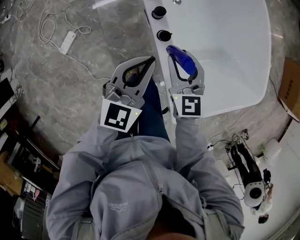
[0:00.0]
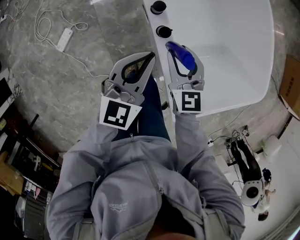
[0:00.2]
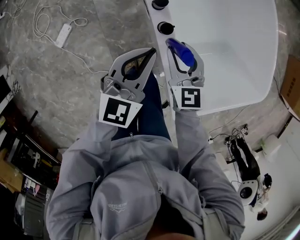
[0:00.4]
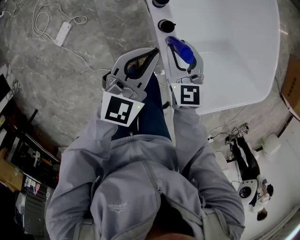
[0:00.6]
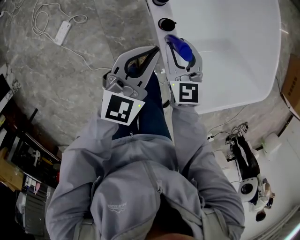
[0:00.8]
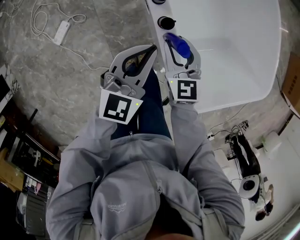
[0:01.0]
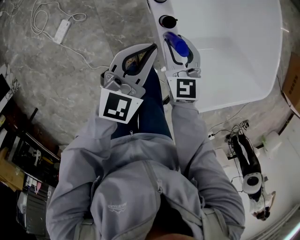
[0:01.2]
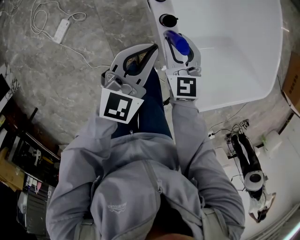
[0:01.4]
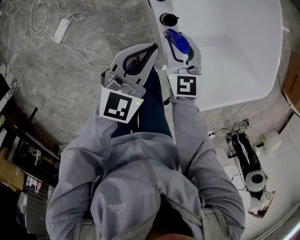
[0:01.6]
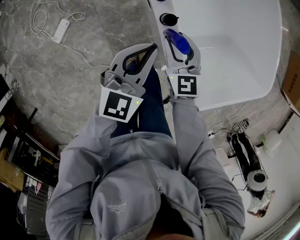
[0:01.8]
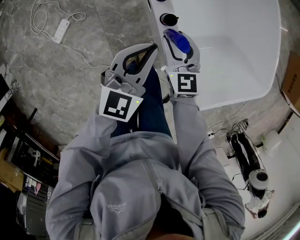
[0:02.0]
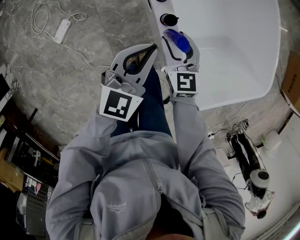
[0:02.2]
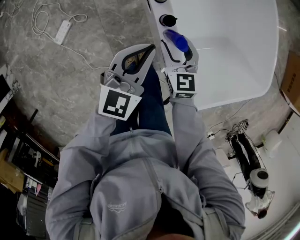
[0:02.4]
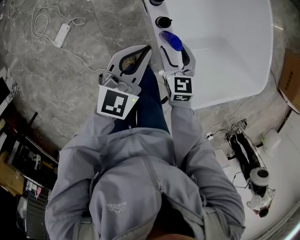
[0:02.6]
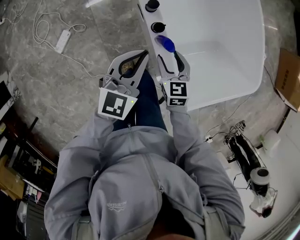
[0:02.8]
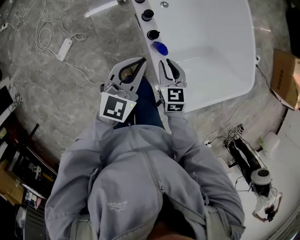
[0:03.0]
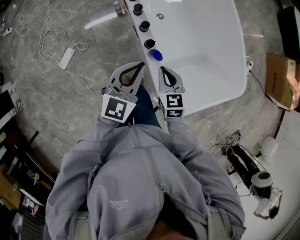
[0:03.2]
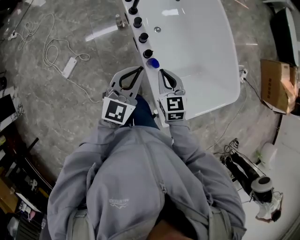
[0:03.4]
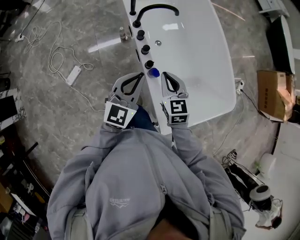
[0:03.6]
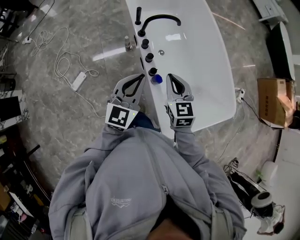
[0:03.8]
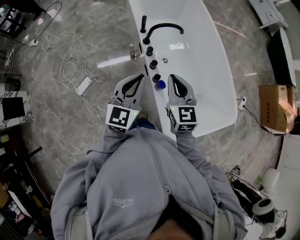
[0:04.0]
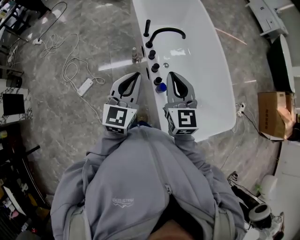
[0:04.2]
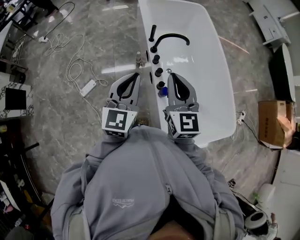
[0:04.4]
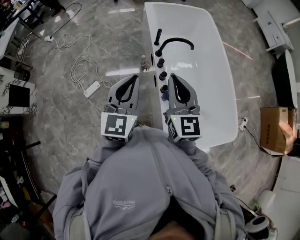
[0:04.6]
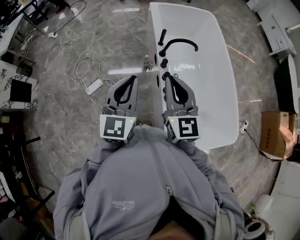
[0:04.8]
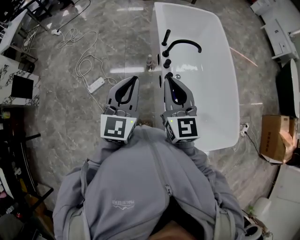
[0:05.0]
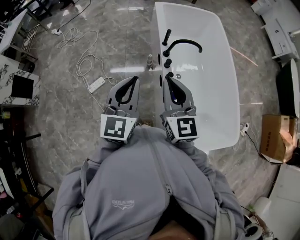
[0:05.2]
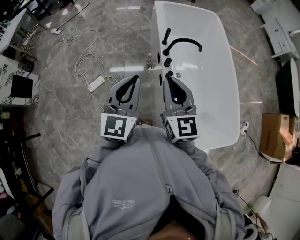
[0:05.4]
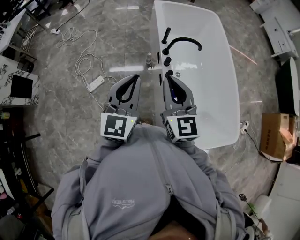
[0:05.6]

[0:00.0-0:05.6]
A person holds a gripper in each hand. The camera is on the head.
0:00.0 to 0:01.4: The two grippers go some 5 cm downward.
0:01.4 to 0:02.8: The right gripper moves about 5 cm.
0:02.8 to 0:04.2: The right gripper moves upward, about 40 cm, angles its fingers upward, by roughly 30 degrees, and closes its fingers; the left gripper heads upward, covering about 25 cm, and changes its angle by some 20 degrees.
0:04.2 to 0:05.6: The right gripper travels to the left by some 10 cm. Meanwhile the left gripper heads to the left and upward, covering roughly 10 cm.

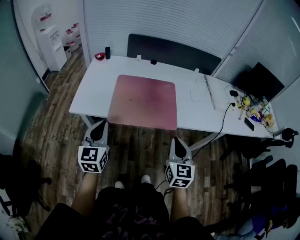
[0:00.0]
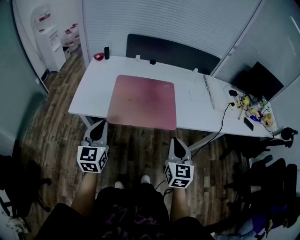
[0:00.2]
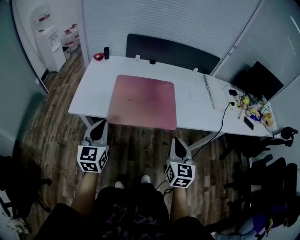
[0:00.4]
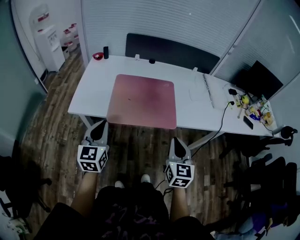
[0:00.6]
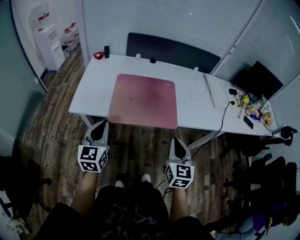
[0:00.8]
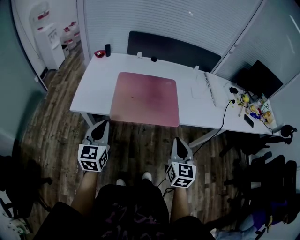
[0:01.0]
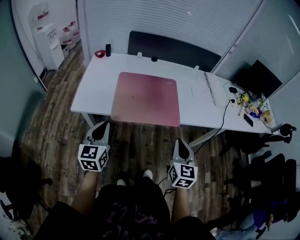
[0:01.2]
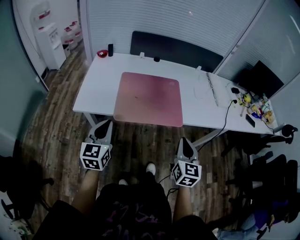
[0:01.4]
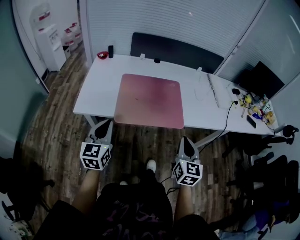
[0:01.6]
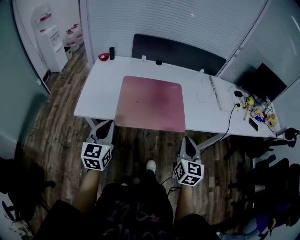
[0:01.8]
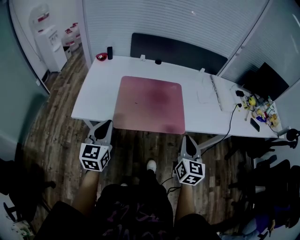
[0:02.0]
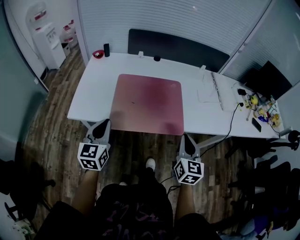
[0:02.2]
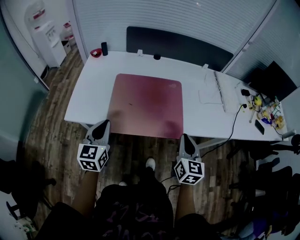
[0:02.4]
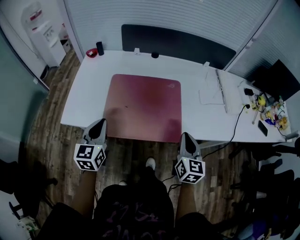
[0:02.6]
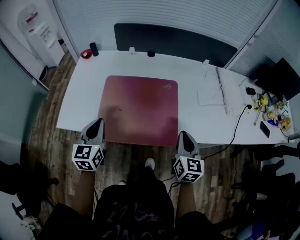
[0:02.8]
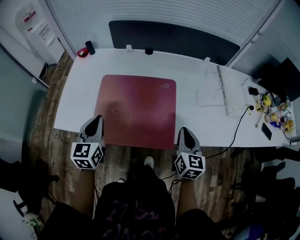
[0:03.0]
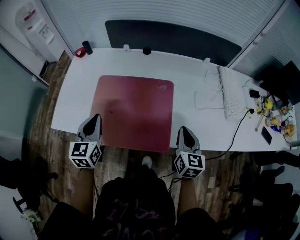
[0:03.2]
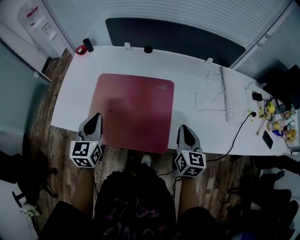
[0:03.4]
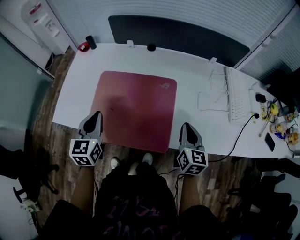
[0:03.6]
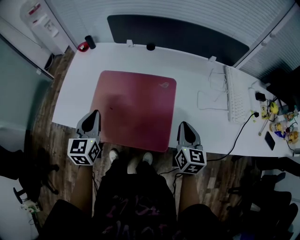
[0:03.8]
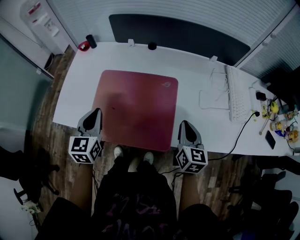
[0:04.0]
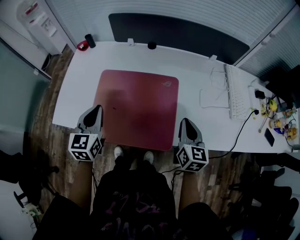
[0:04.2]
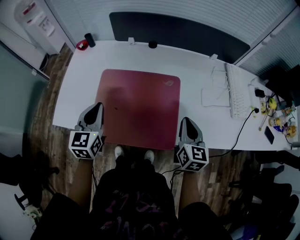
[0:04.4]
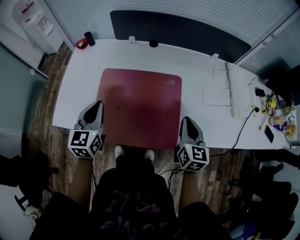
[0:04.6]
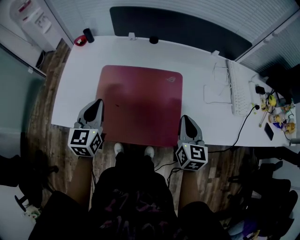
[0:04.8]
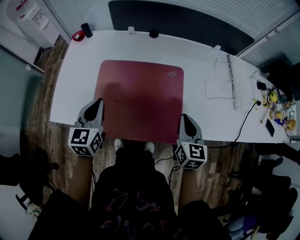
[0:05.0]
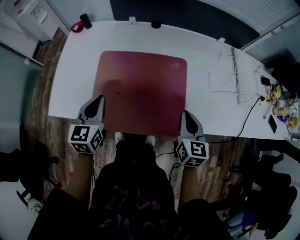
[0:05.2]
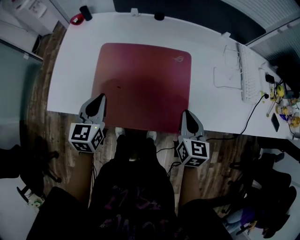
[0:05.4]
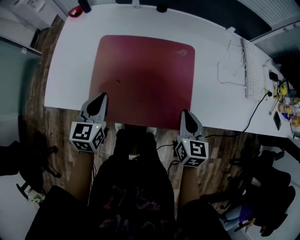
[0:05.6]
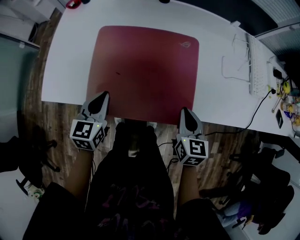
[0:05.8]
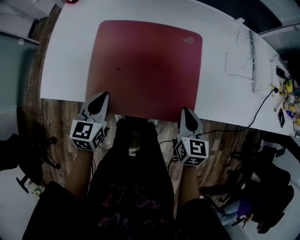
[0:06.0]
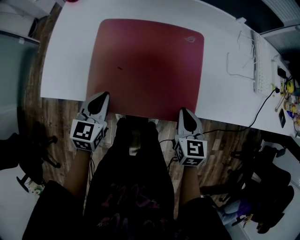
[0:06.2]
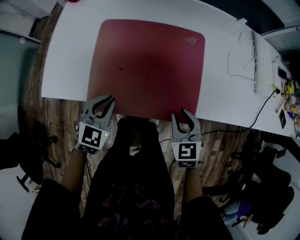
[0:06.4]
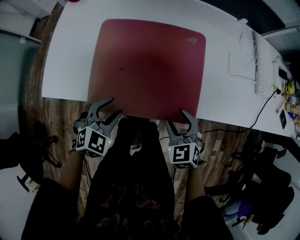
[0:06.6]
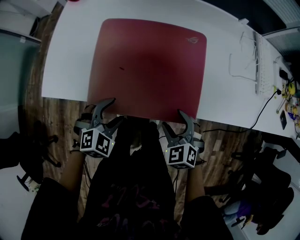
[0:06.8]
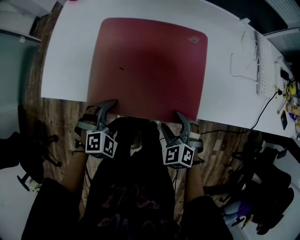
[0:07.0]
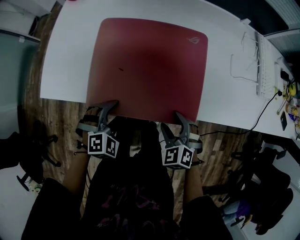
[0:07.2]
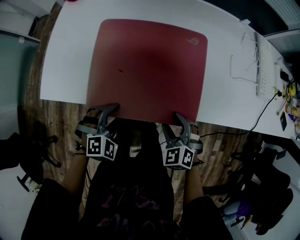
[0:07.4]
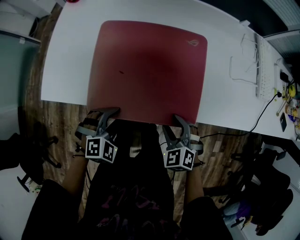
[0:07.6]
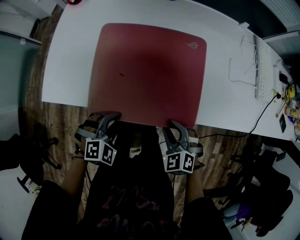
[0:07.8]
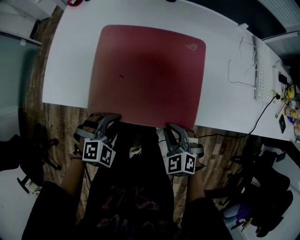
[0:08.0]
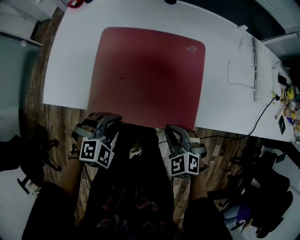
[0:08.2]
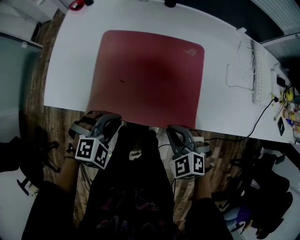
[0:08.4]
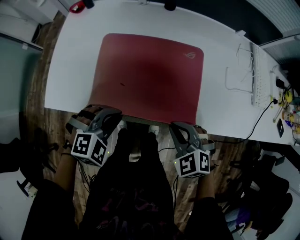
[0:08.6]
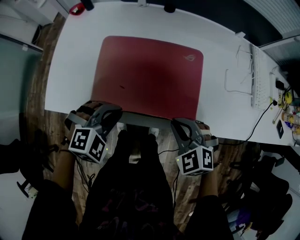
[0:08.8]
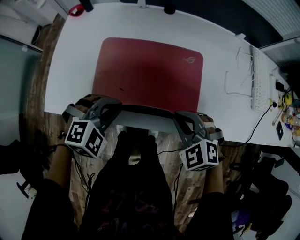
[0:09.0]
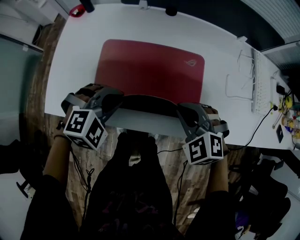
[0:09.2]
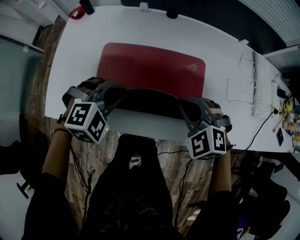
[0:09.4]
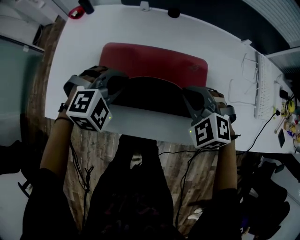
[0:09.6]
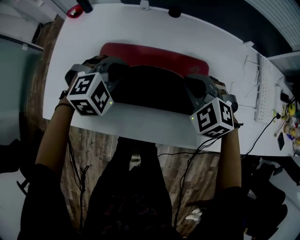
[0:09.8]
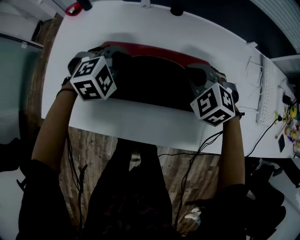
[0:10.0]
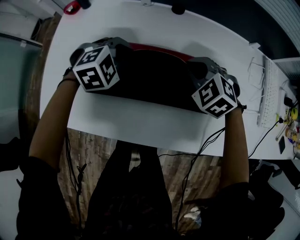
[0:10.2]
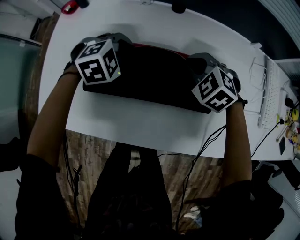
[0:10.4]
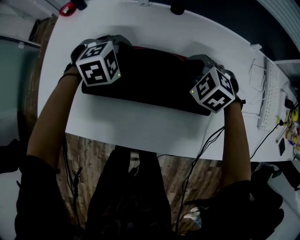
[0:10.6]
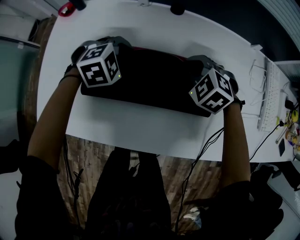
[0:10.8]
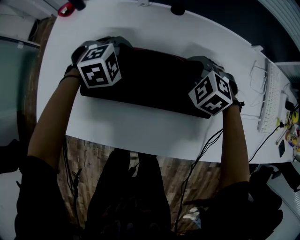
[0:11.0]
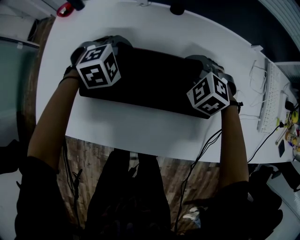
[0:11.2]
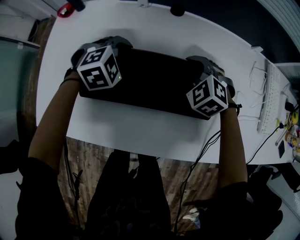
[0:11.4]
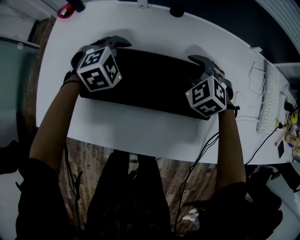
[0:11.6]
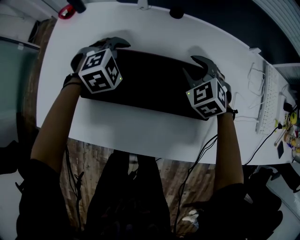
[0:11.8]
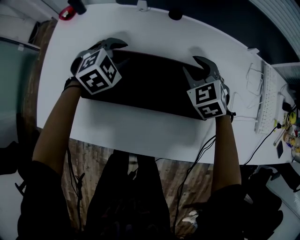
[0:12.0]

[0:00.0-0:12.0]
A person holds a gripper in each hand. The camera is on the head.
0:00.0 to 0:01.6: The grippers stay close to where they were, moving slightly.
0:01.6 to 0:03.0: Both grippers travel together forward, some 20 cm.
0:03.0 to 0:04.4: The two grippers go some 5 cm forward.
0:04.4 to 0:06.0: The left gripper shifts some 15 cm downward and backward. The right gripper moves downward, backward and to the left, about 15 cm.
0:06.0 to 0:07.6: The left gripper shifts approximately 10 cm backward, downward and to the right, rolls clockwise, seen from behind, by roughly 60 degrees, and opens its fingers; the right gripper is displaced to the left by approximately 5 cm, rotates around the line of its fingers by about 50 degrees, counterclockwise from behind, and opens.
0:07.6 to 0:09.0: The left gripper travels forward and upward by roughly 15 cm, and closes. Meanwhile the right gripper shifts roughly 15 cm upward and forward, and closes its fingers.
0:09.0 to 0:10.4: Both grippers move forward, roughly 25 cm.
0:10.4 to 0:12.0: The right gripper swivels about 20 degrees, and opens its fingers; the left gripper opens its fingers.

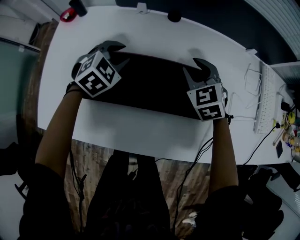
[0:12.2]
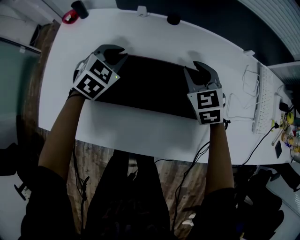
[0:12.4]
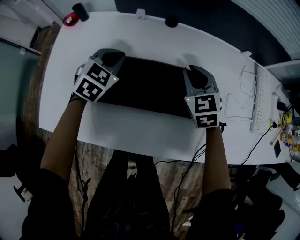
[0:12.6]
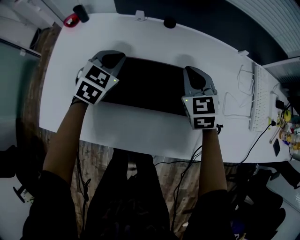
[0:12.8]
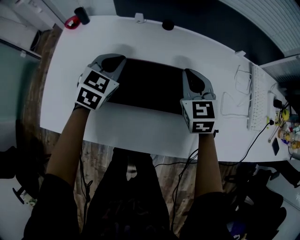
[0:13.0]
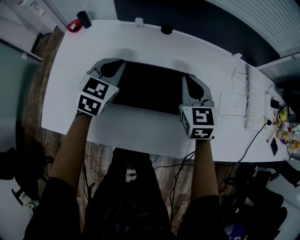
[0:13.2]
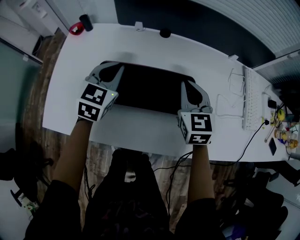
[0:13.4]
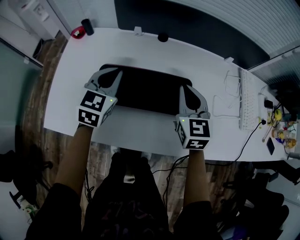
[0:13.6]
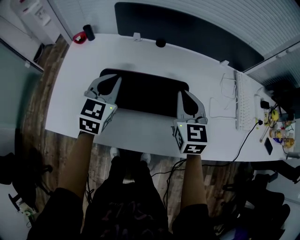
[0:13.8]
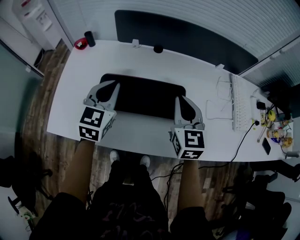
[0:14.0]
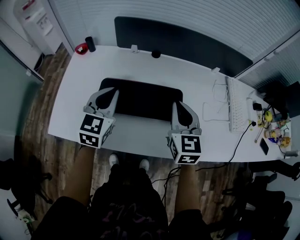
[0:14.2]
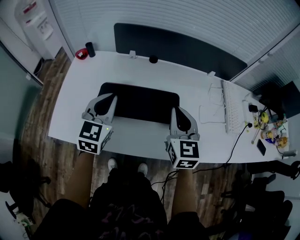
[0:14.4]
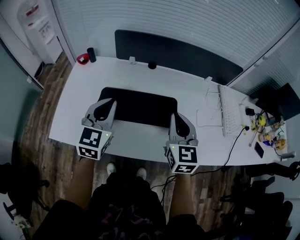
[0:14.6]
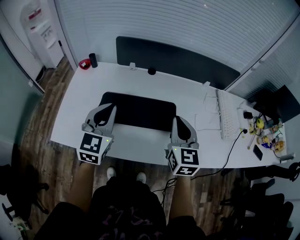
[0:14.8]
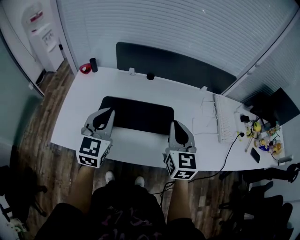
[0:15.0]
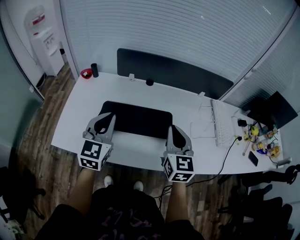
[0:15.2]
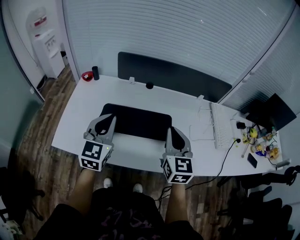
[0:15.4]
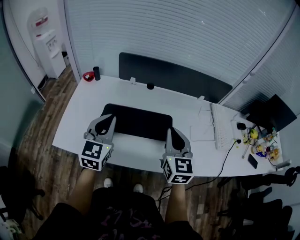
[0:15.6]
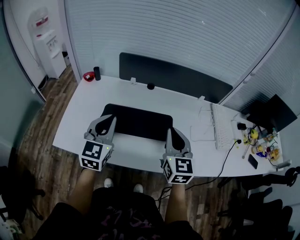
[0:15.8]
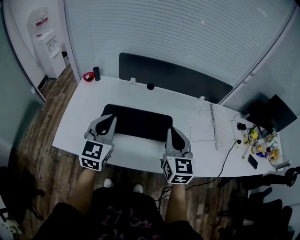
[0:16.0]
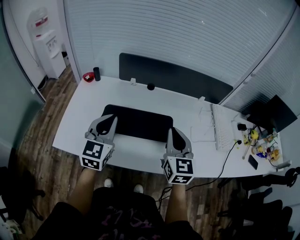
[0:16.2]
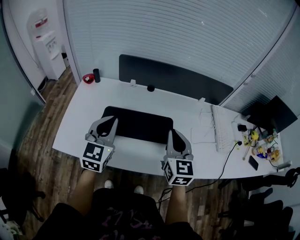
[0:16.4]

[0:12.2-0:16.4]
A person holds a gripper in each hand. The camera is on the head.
0:12.2 to 0:13.6: The grippers both shift upward and backward by approximately 15 cm. The left gripper changes its angle by approximately 40 degrees, and closes. Meanwhile the right gripper rotates approximately 30 degrees, and closes its fingers.
0:13.6 to 0:15.0: The two grippers go some 15 cm backward and upward.
0:15.0 to 0:16.4: There are only small adjustments of the grippers.

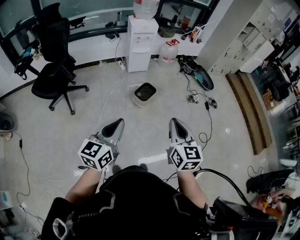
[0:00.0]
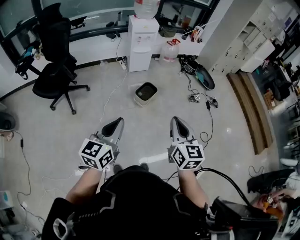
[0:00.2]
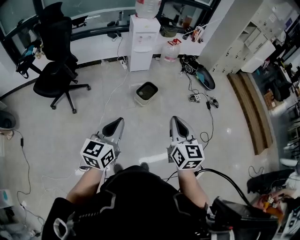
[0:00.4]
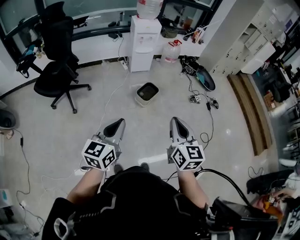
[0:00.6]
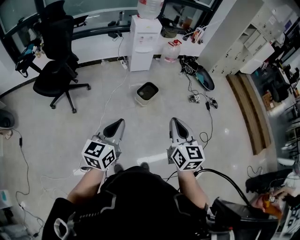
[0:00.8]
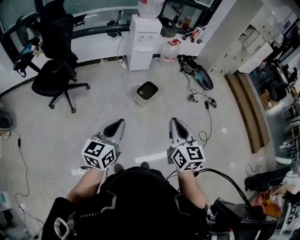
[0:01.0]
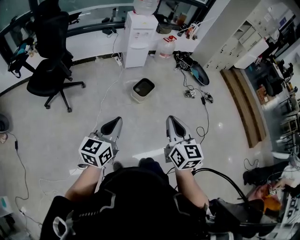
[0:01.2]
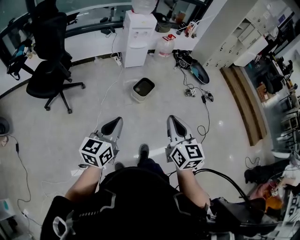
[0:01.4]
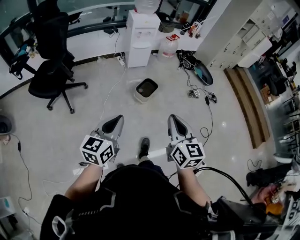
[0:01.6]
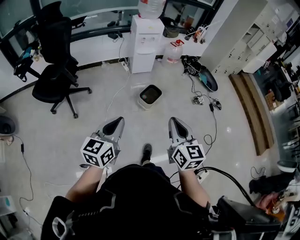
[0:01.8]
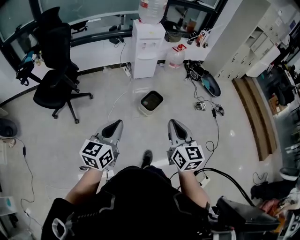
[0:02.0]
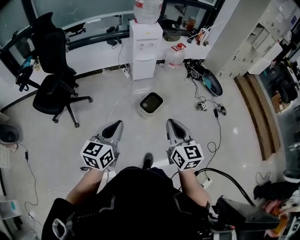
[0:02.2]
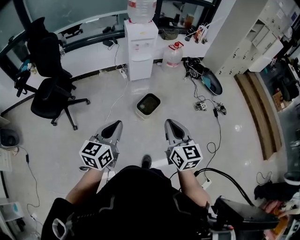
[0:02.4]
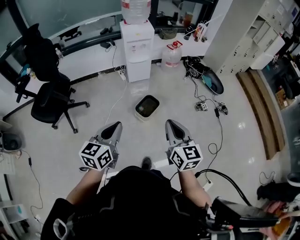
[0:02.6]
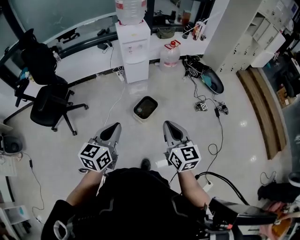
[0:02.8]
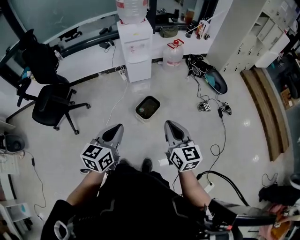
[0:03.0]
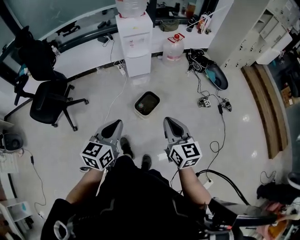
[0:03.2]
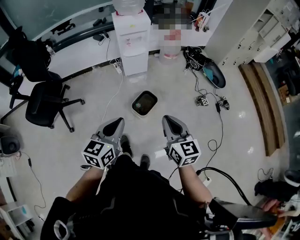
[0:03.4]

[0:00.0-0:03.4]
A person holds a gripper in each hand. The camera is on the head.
0:00.0 to 0:01.6: The grippers both shift to the left by roughly 5 cm.
0:01.6 to 0:03.4: The left gripper is displaced forward and to the right by some 35 cm; the right gripper goes about 35 cm forward.
